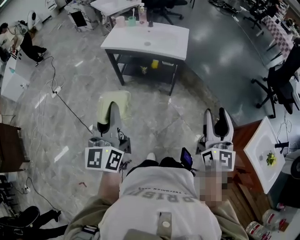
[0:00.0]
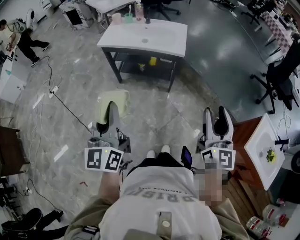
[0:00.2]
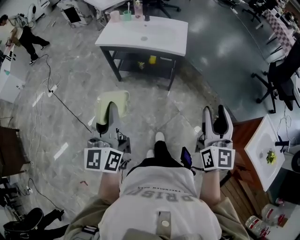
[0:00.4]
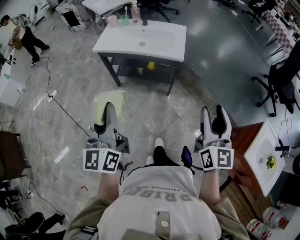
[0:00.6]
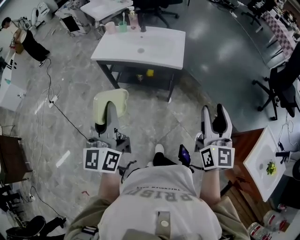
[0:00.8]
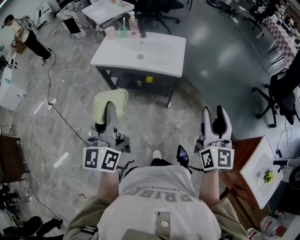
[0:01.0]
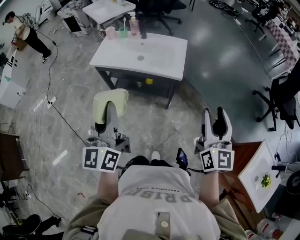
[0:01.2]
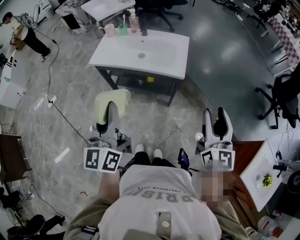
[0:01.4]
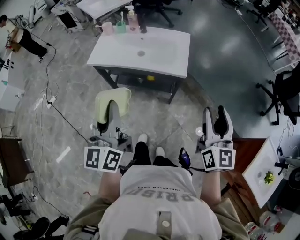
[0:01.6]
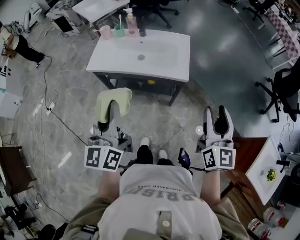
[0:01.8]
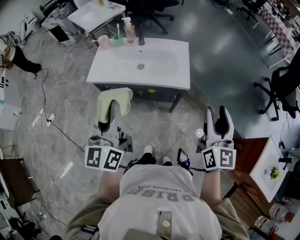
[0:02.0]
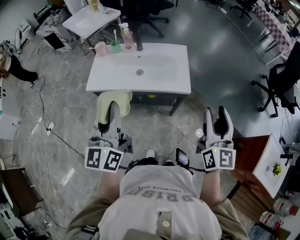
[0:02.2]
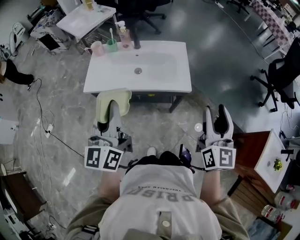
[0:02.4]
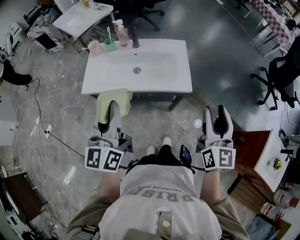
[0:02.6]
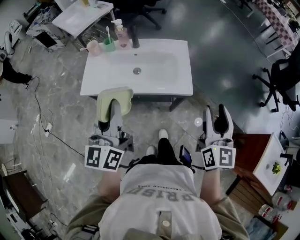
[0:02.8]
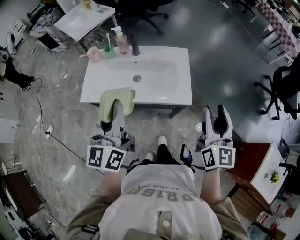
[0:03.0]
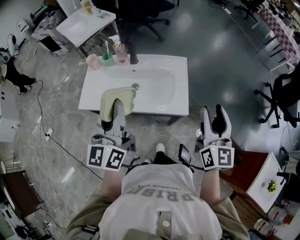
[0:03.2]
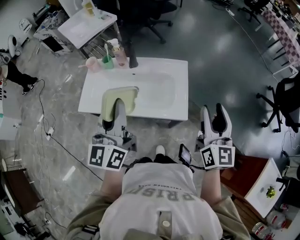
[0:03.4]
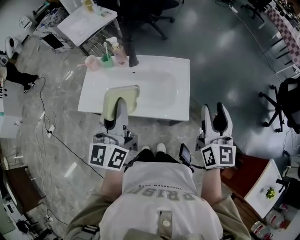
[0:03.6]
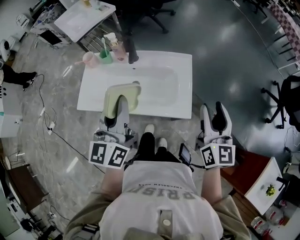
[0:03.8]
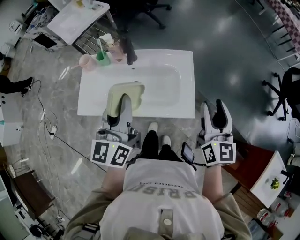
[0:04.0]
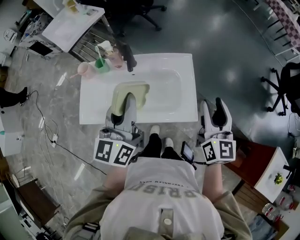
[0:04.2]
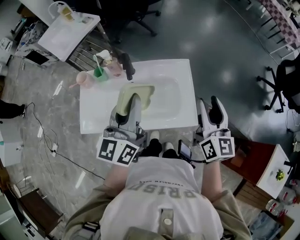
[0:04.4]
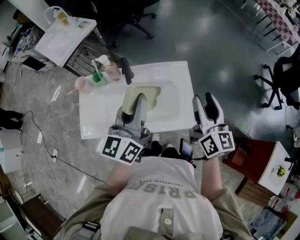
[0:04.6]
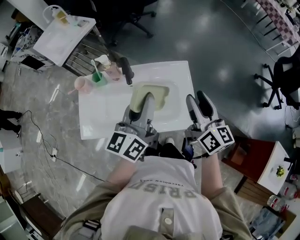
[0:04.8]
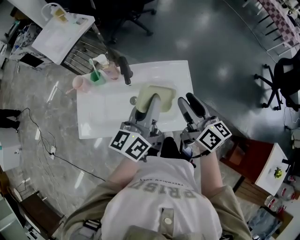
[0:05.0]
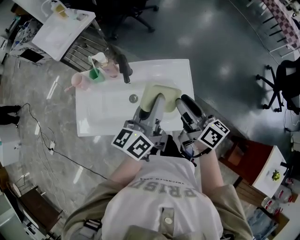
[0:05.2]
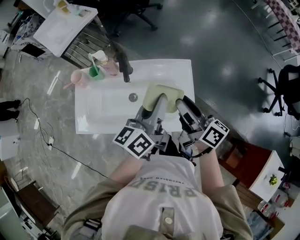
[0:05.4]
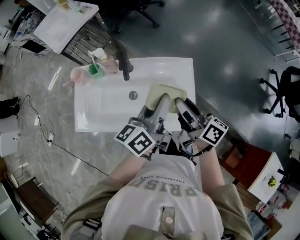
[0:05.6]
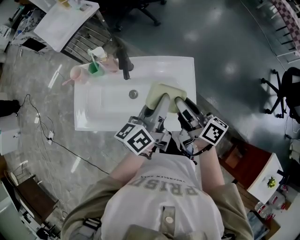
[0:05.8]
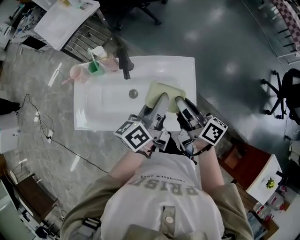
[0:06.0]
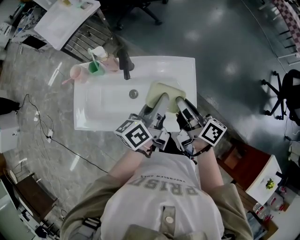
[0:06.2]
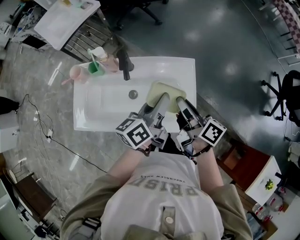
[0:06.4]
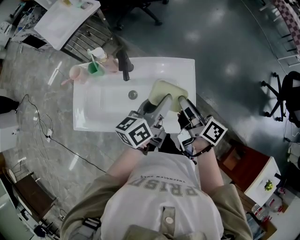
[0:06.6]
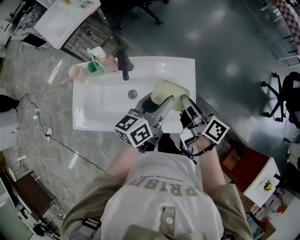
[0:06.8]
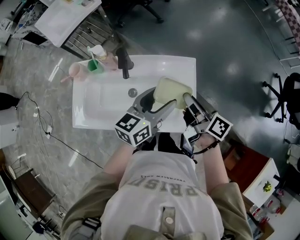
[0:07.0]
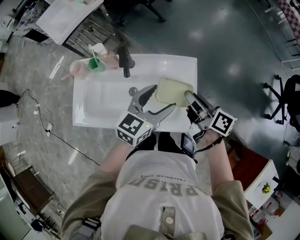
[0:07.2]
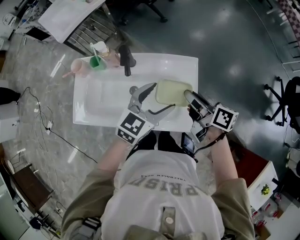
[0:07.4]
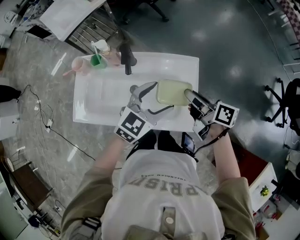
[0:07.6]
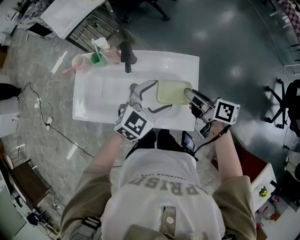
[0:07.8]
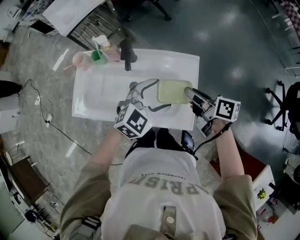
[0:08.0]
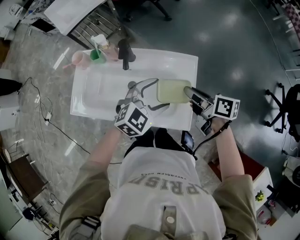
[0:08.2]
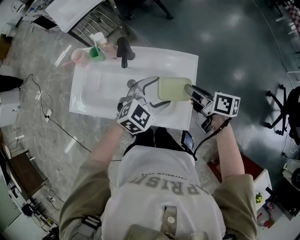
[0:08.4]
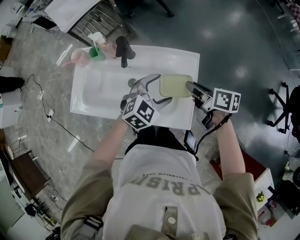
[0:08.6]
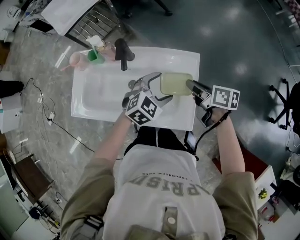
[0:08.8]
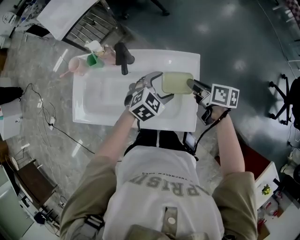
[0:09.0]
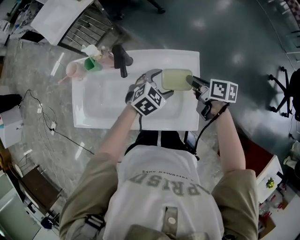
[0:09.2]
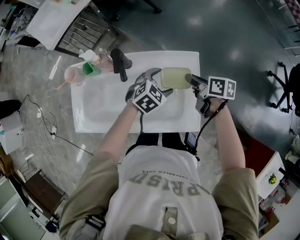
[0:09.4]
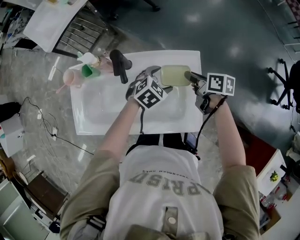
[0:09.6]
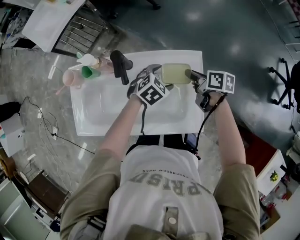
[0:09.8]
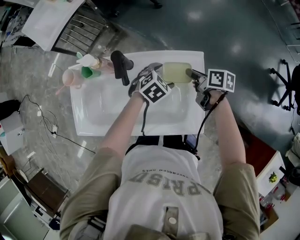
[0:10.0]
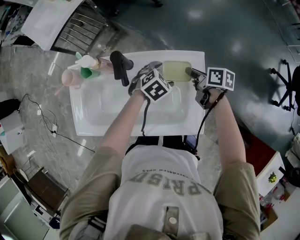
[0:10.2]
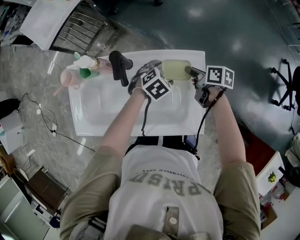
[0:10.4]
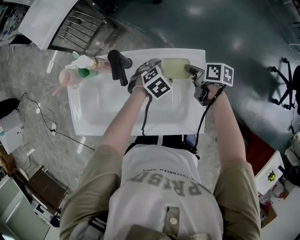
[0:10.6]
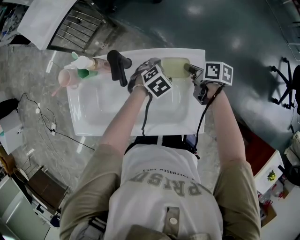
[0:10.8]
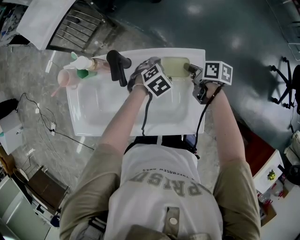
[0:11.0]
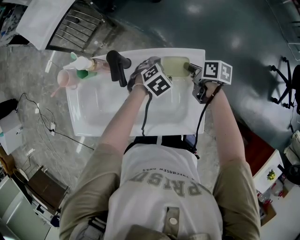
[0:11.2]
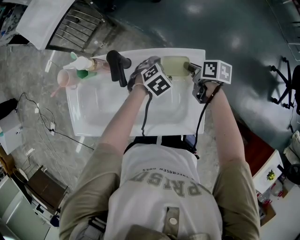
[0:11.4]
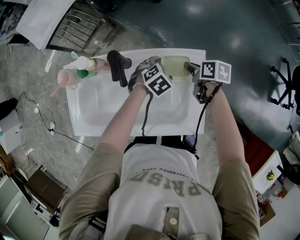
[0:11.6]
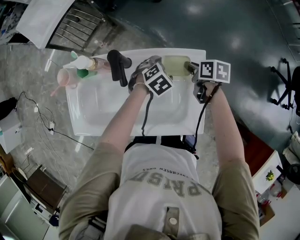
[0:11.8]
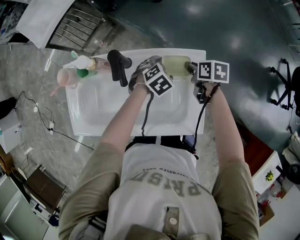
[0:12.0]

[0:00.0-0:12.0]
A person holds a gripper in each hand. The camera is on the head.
0:00.0 to 0:01.6: Both grippers move forward, about 25 cm.
0:01.6 to 0:03.0: The grippers both shift forward by some 20 cm.
0:03.0 to 0:04.4: Both grippers move forward, approximately 20 cm.
0:04.4 to 0:06.0: The left gripper heads downward, to the right and forward, covering about 15 cm, and turns by about 40 degrees. Meanwhile the right gripper heads downward, to the left and forward, covering roughly 15 cm, rotates around the line of its fingers by some 50 degrees, clockwise from behind, and closes.
0:06.0 to 0:07.6: The right gripper moves some 5 cm; the left gripper rolls clockwise, seen from behind, by some 60 degrees, and opens up.
0:07.6 to 0:09.0: Both grippers travel together downward, about 10 cm. The left gripper rotates roughly 20 degrees.
0:09.0 to 0:10.4: The grippers both shift downward and forward by some 10 cm.
0:10.4 to 0:12.0: The grippers stay close to where they were, moving slightly.

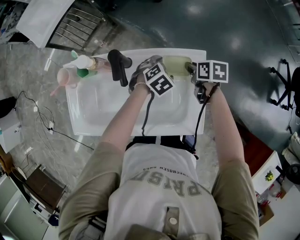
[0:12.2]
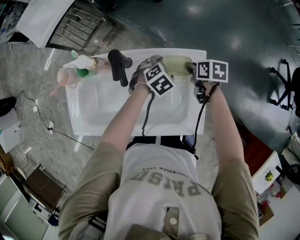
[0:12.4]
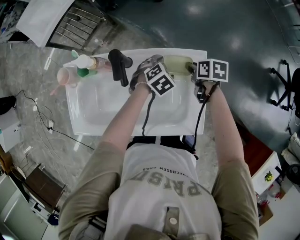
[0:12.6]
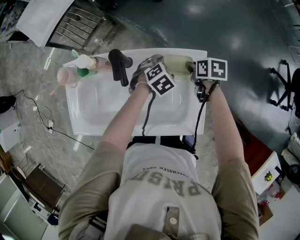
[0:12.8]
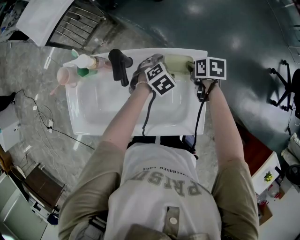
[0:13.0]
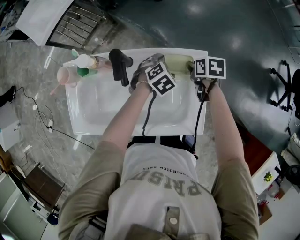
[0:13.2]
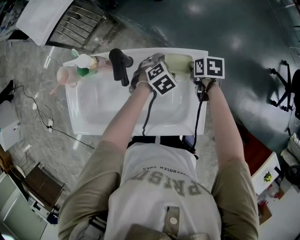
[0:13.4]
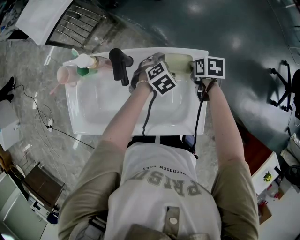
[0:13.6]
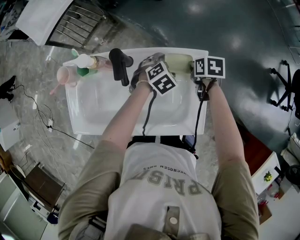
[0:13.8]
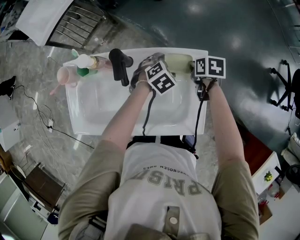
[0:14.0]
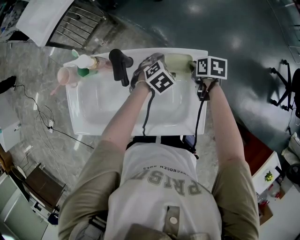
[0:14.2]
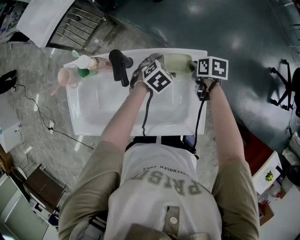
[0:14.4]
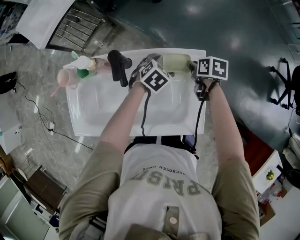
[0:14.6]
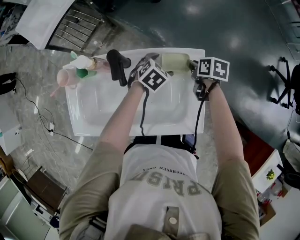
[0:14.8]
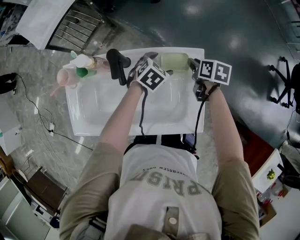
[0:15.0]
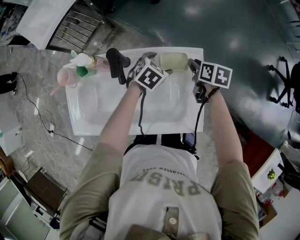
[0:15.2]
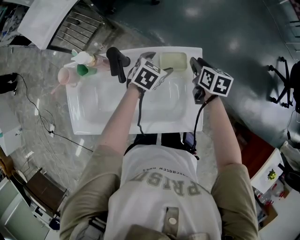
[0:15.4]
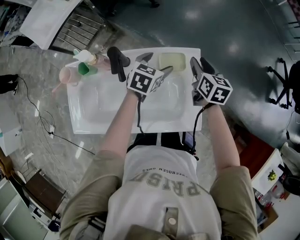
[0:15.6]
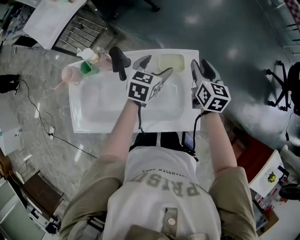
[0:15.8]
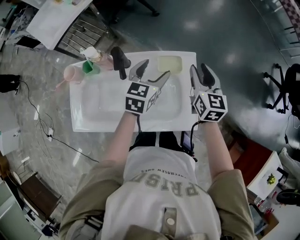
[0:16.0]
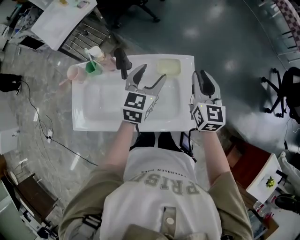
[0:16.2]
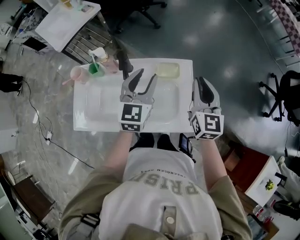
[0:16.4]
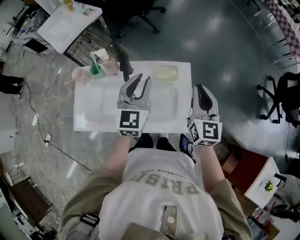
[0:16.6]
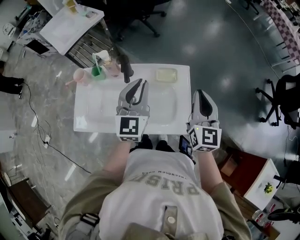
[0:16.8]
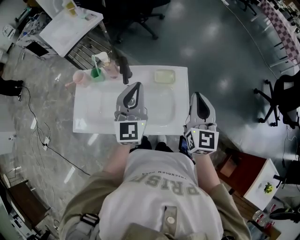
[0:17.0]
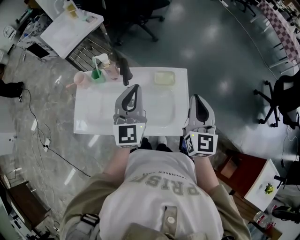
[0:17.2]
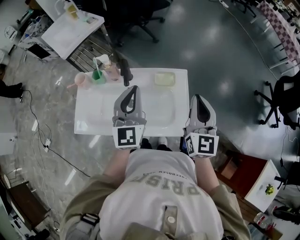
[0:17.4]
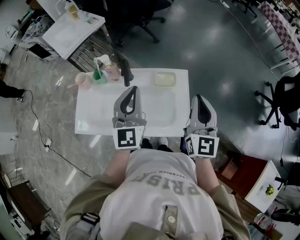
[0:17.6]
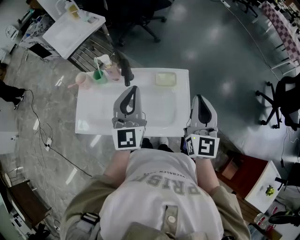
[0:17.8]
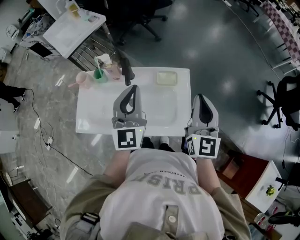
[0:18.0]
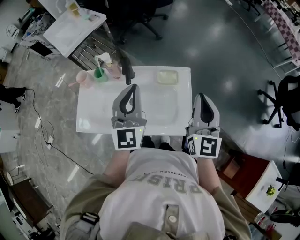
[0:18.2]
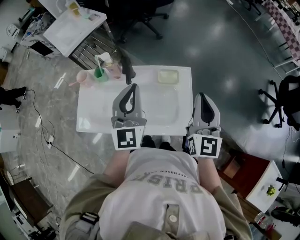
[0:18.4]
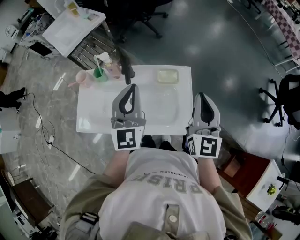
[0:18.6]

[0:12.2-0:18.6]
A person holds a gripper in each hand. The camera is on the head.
0:12.2 to 0:13.8: There are only small adjustments of the grippers.
0:13.8 to 0:15.4: Both grippers move upward, approximately 5 cm. The left gripper swivels some 20 degrees. The right gripper rotates approximately 30 degrees.
0:15.4 to 0:17.0: The two grippers go approximately 30 cm upward and backward. The left gripper tilts its fingers about 50 degrees upward, and closes. The right gripper tips its fingers upward by roughly 40 degrees, and closes up.
0:17.0 to 0:18.6: The grippers make only small movements.

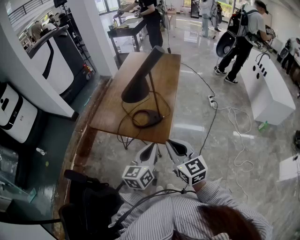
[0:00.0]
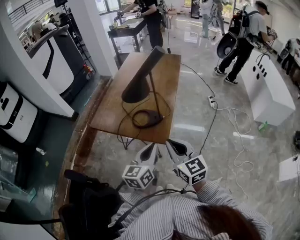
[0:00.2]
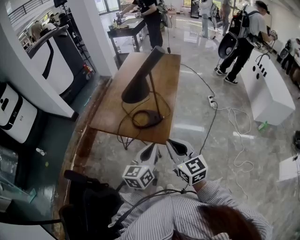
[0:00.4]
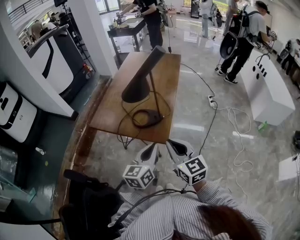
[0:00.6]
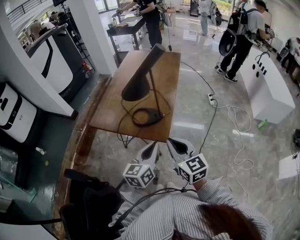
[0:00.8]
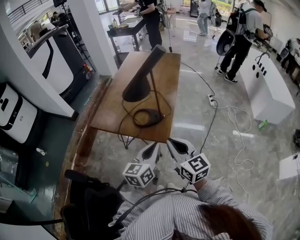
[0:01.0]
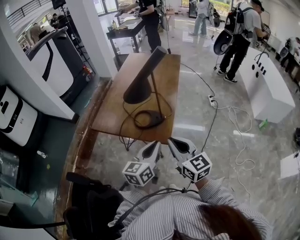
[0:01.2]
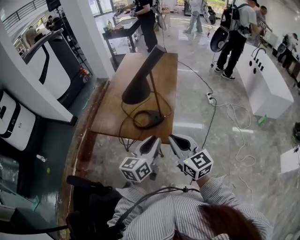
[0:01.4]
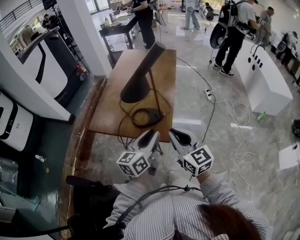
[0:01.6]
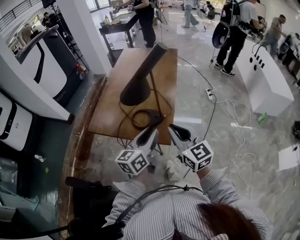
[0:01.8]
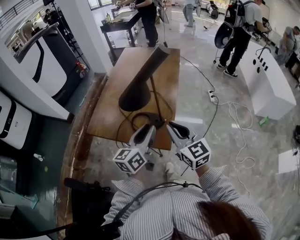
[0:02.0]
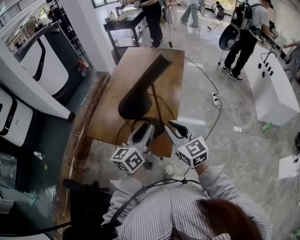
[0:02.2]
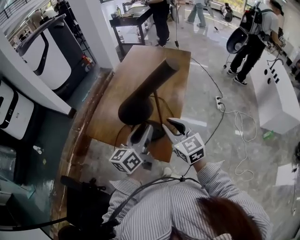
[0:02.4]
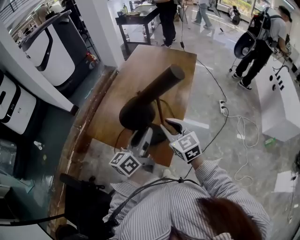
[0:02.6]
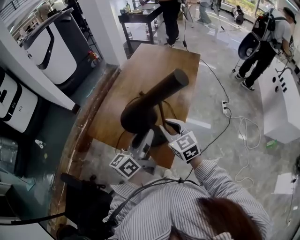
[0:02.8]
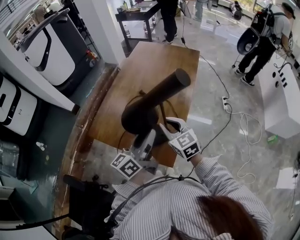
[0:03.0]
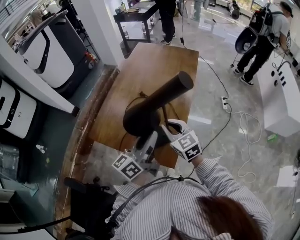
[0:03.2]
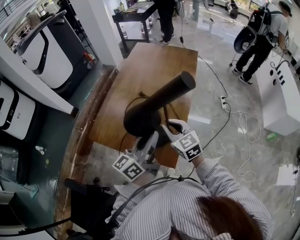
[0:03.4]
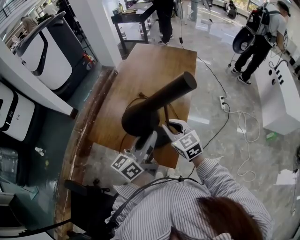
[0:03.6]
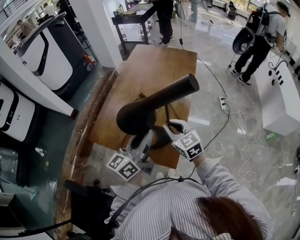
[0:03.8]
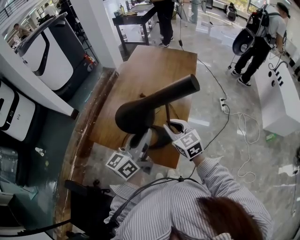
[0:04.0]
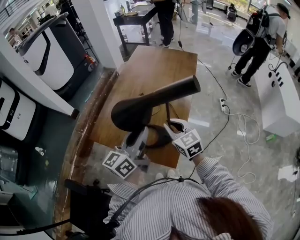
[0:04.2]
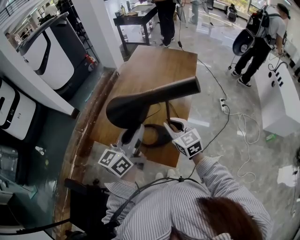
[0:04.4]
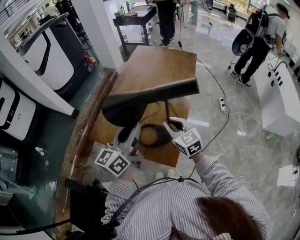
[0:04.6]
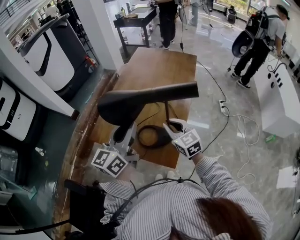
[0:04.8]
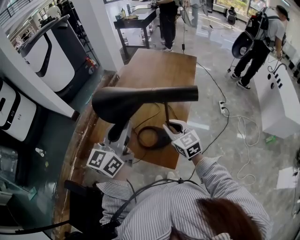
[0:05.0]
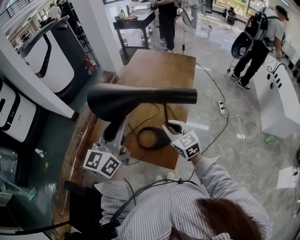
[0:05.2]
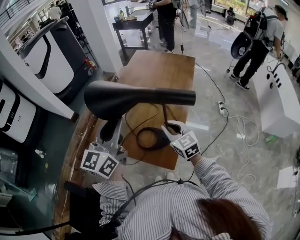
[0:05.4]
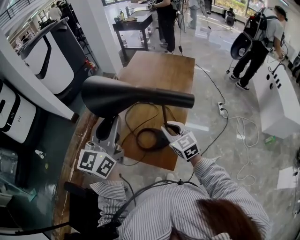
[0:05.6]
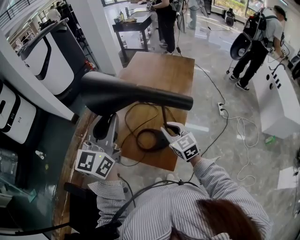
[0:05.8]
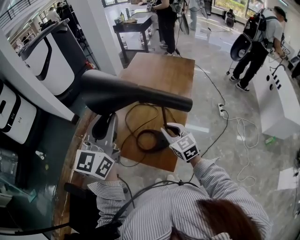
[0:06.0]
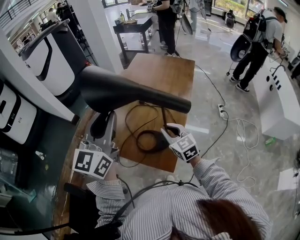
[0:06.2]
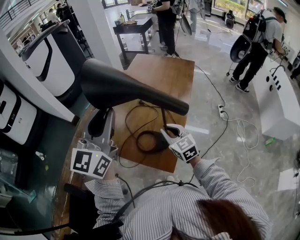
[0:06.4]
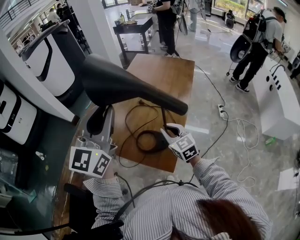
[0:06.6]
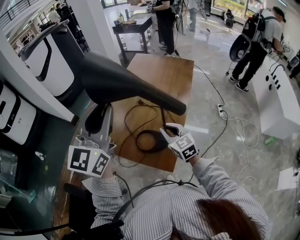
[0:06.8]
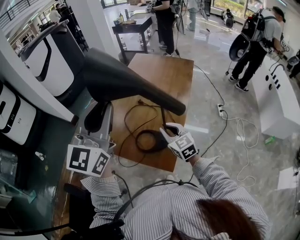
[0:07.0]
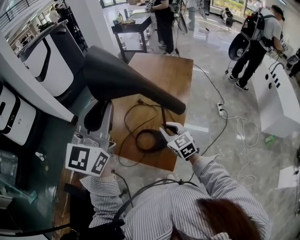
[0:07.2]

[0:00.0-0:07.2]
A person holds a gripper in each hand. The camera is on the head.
0:00.0 to 0:01.4: The grippers make only small movements.
0:01.4 to 0:02.8: Both grippers travel together forward, approximately 25 cm. The left gripper swivels roughly 20 degrees; the right gripper changes its angle by about 20 degrees.
0:02.8 to 0:04.4: The left gripper heads upward, covering roughly 5 cm, and closes.
0:04.4 to 0:05.8: The left gripper goes some 10 cm upward and to the left, and swivels approximately 30 degrees.
0:05.8 to 0:07.2: The left gripper shifts about 5 cm upward.
